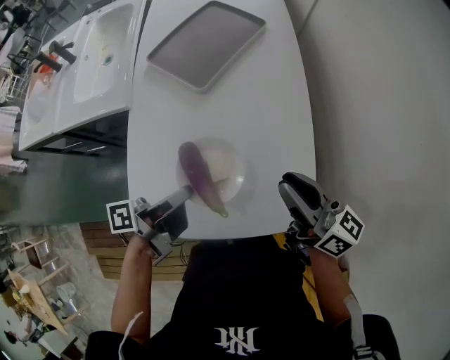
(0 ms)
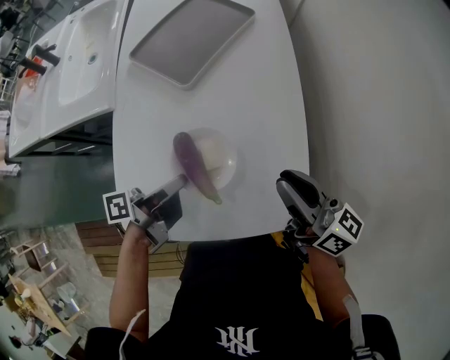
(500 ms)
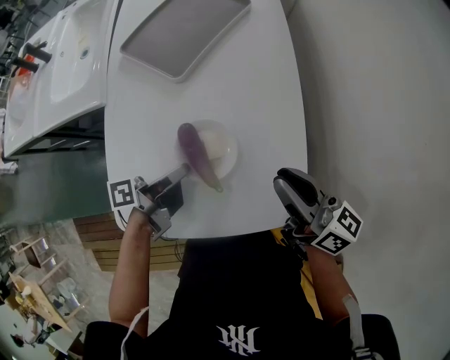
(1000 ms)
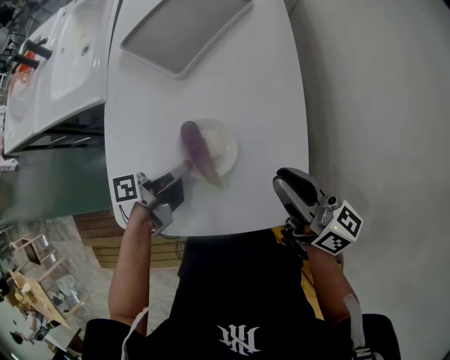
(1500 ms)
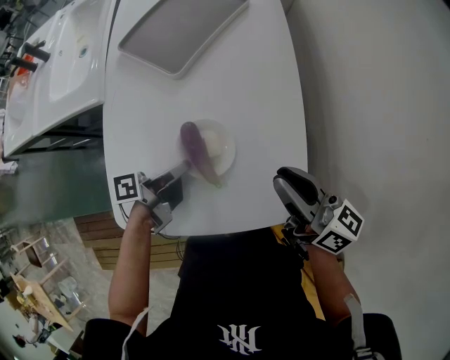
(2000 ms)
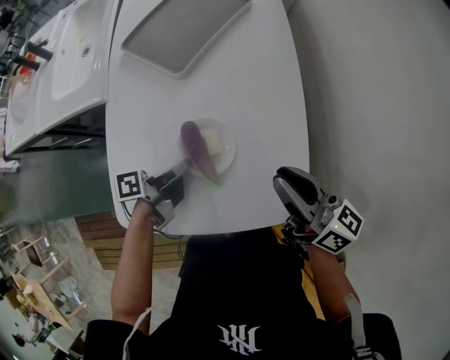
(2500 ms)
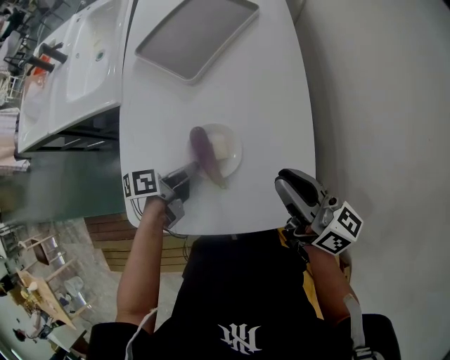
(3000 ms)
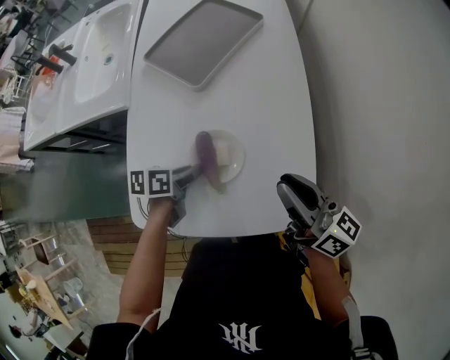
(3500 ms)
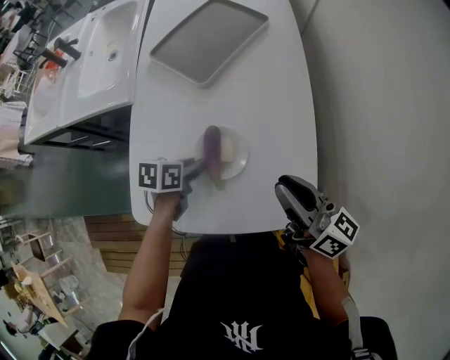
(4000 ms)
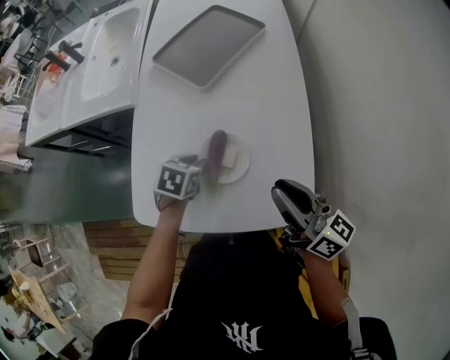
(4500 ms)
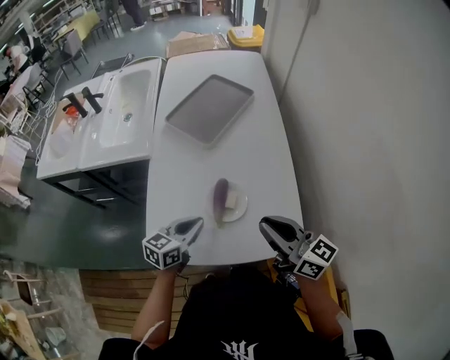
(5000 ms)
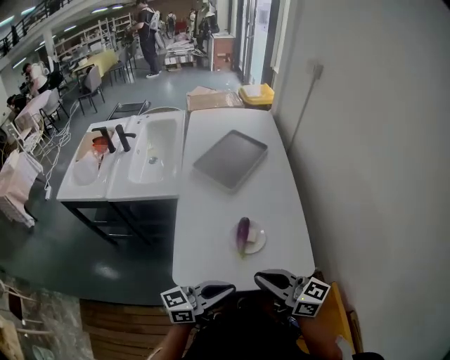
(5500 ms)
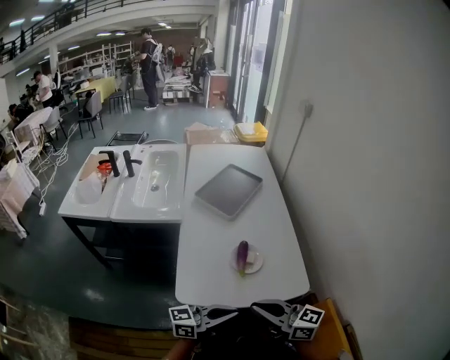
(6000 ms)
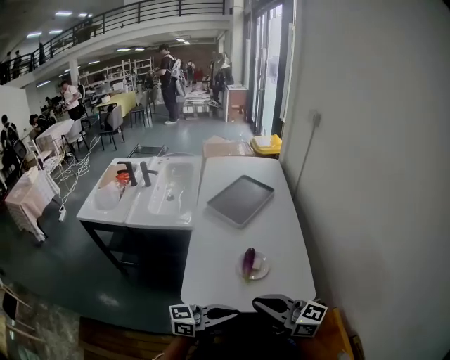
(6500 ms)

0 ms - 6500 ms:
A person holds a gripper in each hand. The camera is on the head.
4500 ms - 6500 ms: The right gripper moves approximately 25 cm, and changes its angle by about 30 degrees.

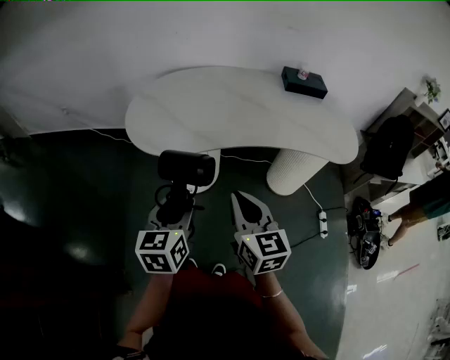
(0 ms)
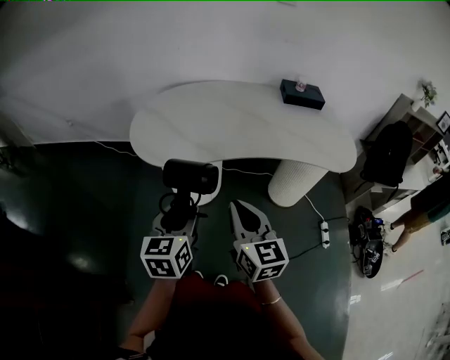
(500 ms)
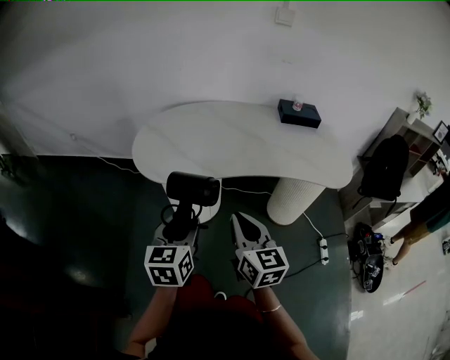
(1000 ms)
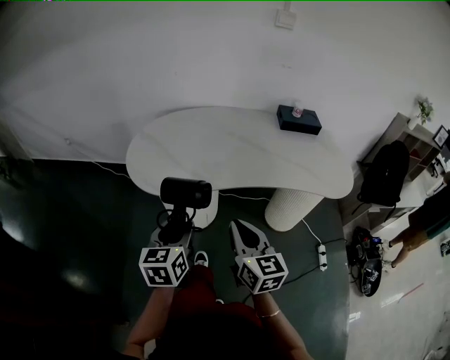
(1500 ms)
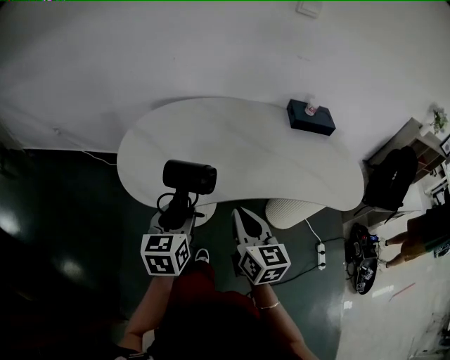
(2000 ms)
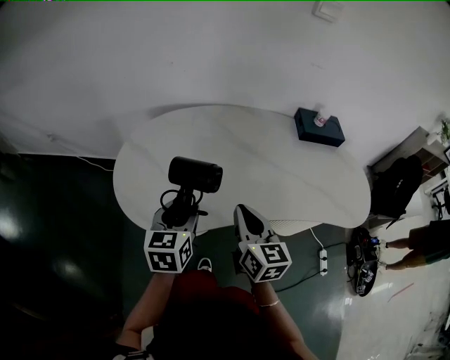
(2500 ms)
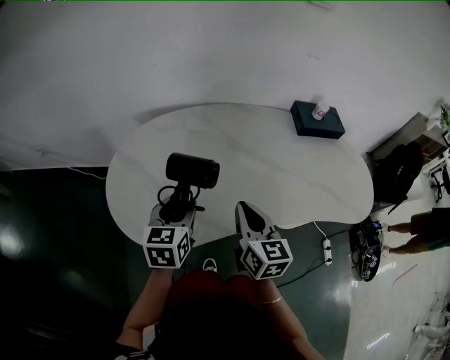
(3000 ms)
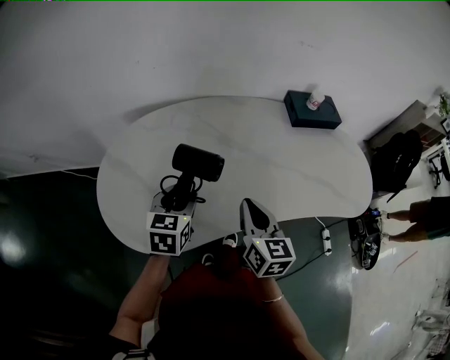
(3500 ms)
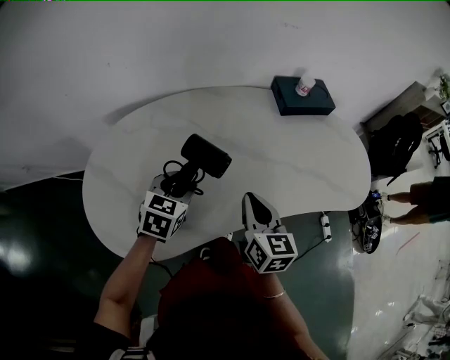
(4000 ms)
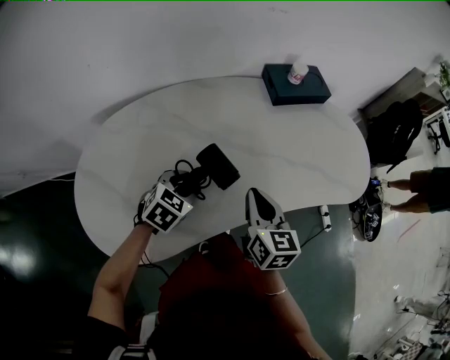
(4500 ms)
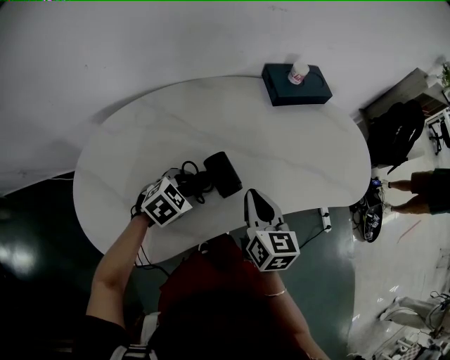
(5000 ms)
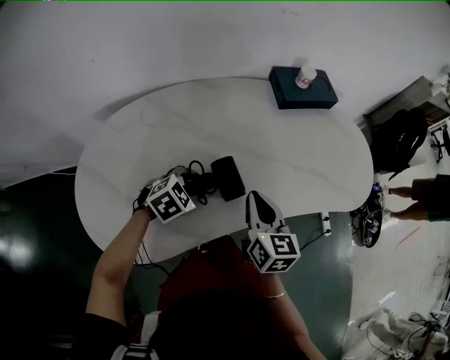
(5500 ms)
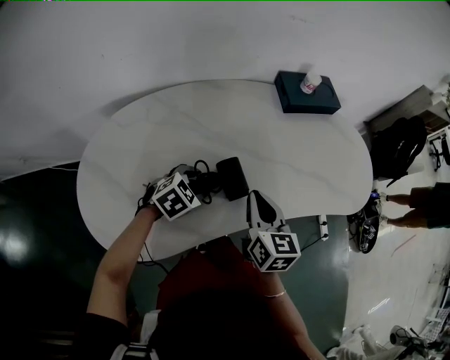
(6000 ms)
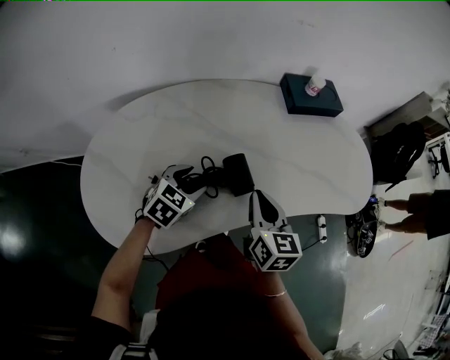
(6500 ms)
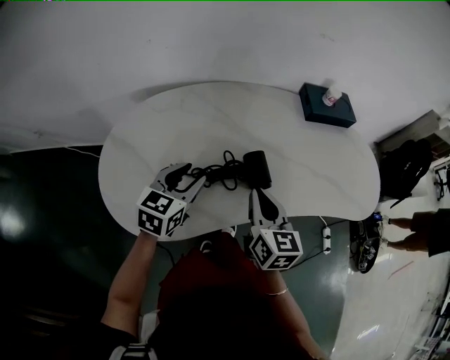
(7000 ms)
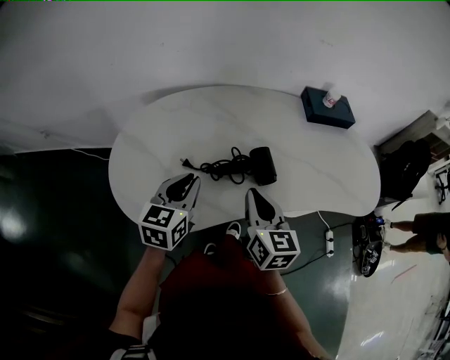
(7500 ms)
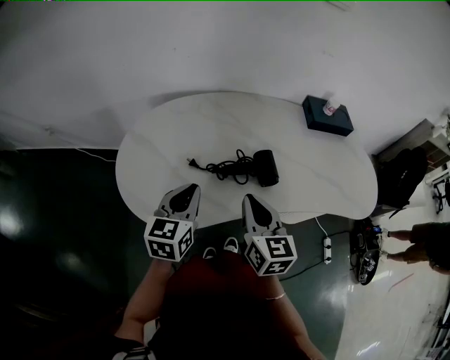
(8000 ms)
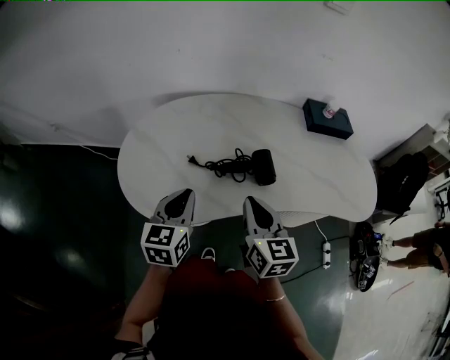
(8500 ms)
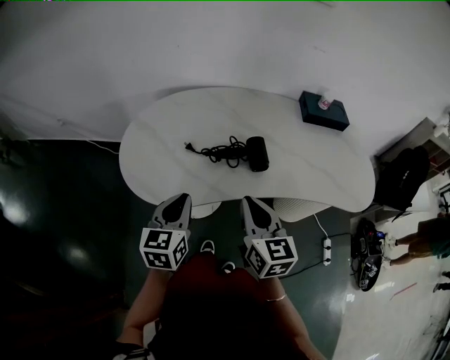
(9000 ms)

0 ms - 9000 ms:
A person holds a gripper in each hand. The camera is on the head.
0 ms - 2000 ms: The grippers both shift forward by about 15 cm.
2000 ms - 4500 ms: The left gripper moves about 30 cm, and rotates roughly 60 degrees, while the right gripper moves some 25 cm, and turns by some 20 degrees.
4500 ms - 7000 ms: The right gripper shifts roughly 10 cm to the left and backward; the left gripper travels upward, to the left and backward by some 15 cm, and turns by about 30 degrees.
7000 ms - 9000 ms: Both grippers move backward, some 15 cm. The left gripper rotates roughly 20 degrees, and closes up.

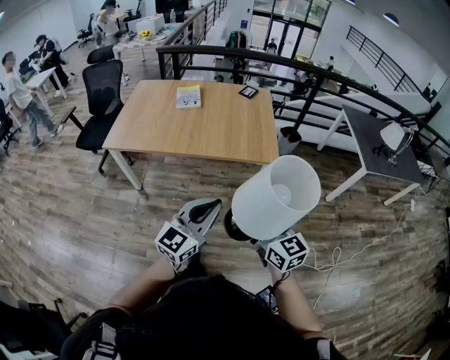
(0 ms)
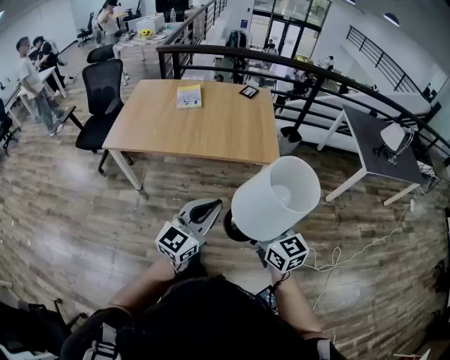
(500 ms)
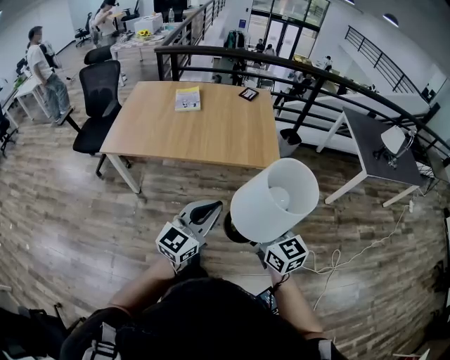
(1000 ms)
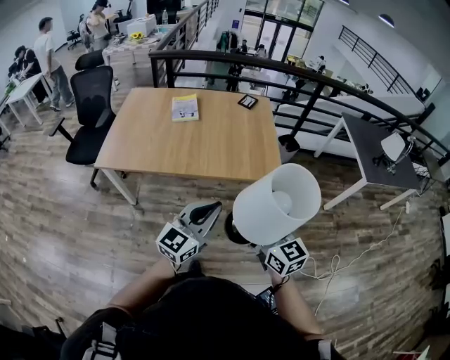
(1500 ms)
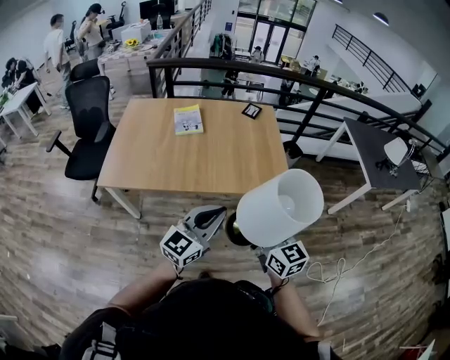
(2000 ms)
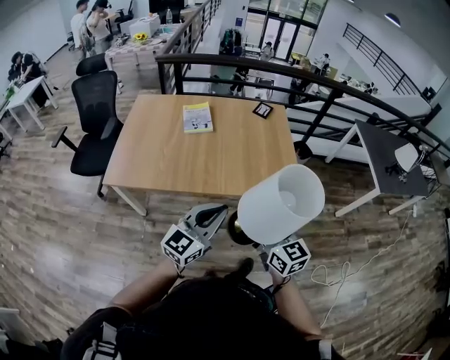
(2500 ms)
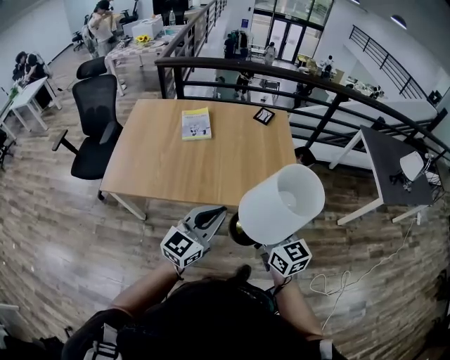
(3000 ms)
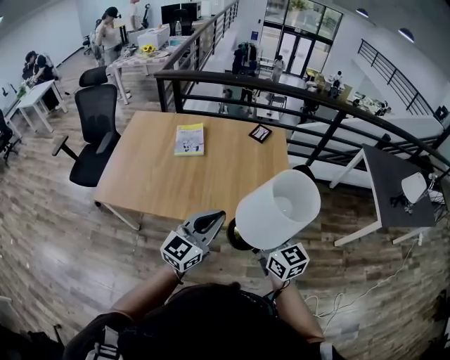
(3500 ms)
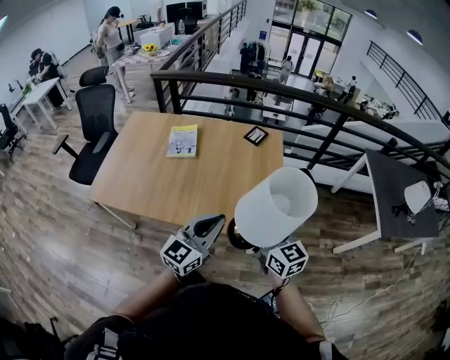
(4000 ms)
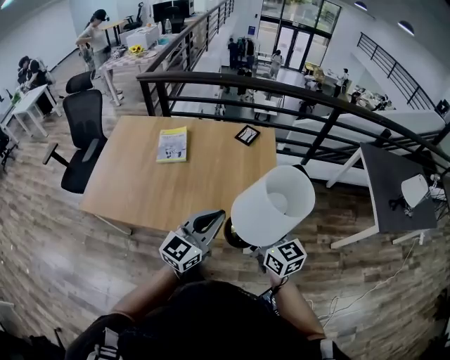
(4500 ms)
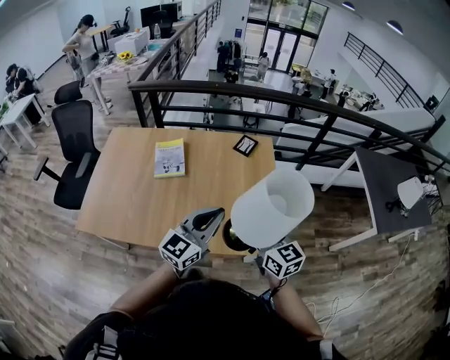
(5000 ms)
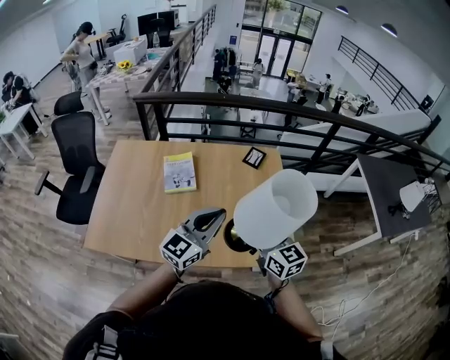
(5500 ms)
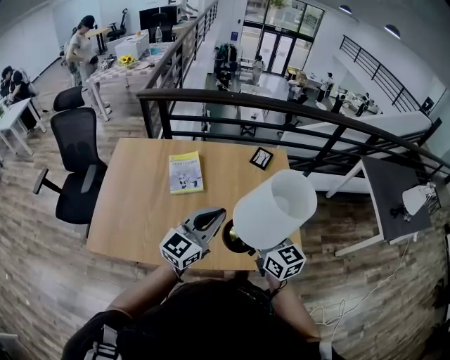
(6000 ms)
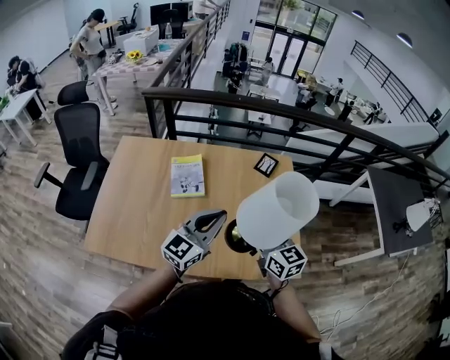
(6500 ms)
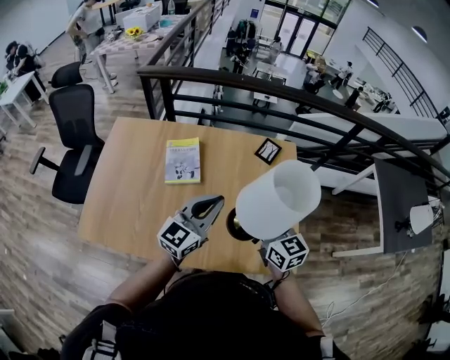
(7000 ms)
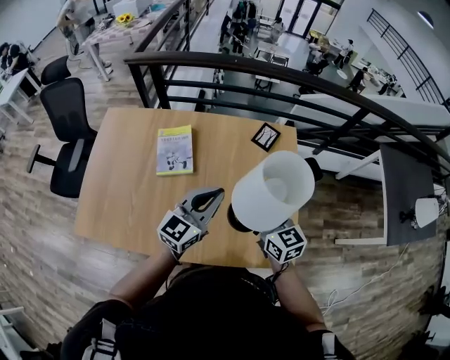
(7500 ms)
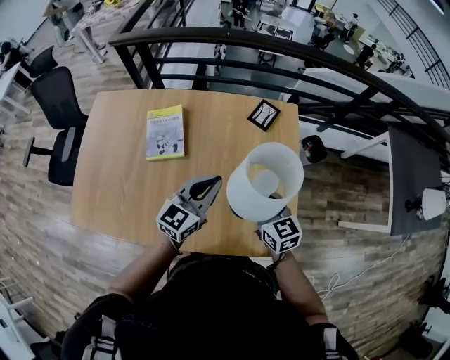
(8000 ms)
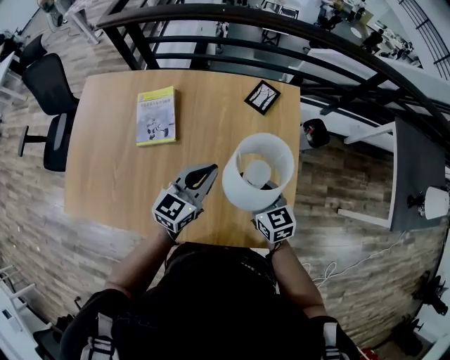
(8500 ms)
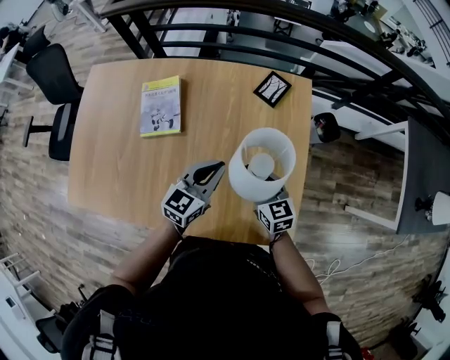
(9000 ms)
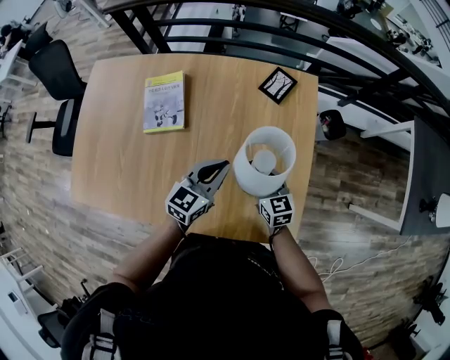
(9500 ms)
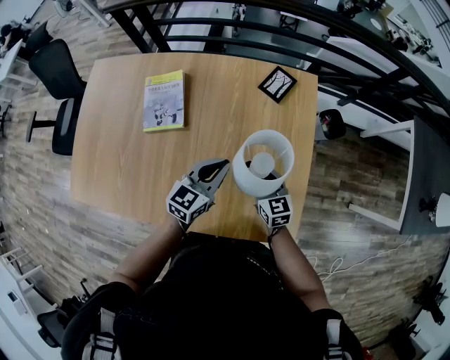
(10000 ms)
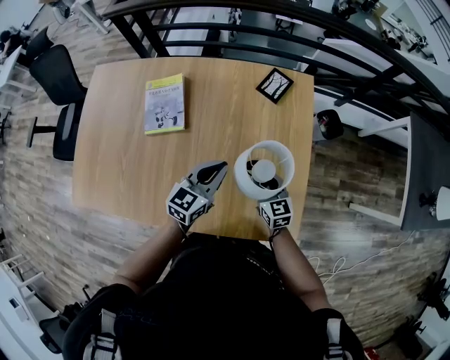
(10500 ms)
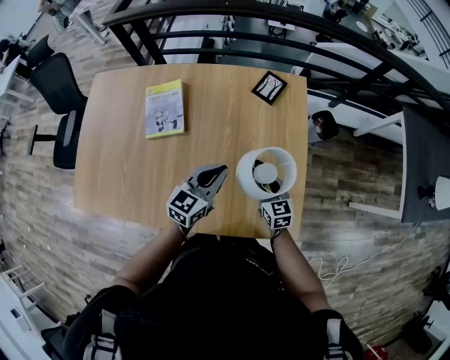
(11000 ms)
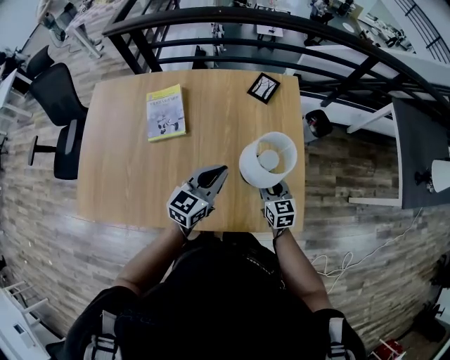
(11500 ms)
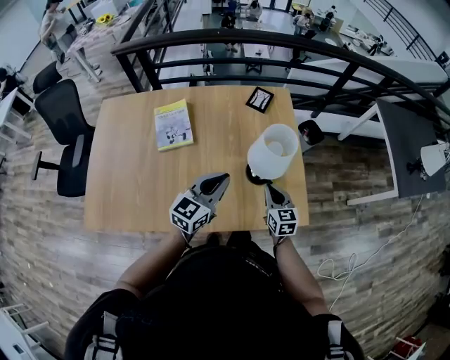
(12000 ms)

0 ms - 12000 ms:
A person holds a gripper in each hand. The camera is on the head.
0 ms - 2000 ms: Both grippers travel together forward and to the left, about 25 cm.
2000 ms - 4000 ms: The grippers both shift forward and to the right by roughly 30 cm.
4000 ms - 6000 ms: The grippers both shift to the left and forward by about 25 cm.
6000 ms - 8000 ms: The grippers both shift forward, downward and to the right by approximately 25 cm.
8000 ms - 10000 ms: Both grippers move downward, some 15 cm.
10000 ms - 12000 ms: The left gripper shifts roughly 20 cm backward and upward; the right gripper shifts some 15 cm backward, turns by about 20 degrees, and closes.
